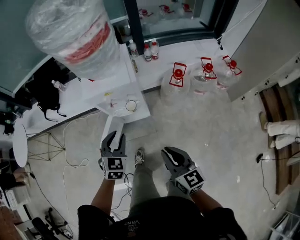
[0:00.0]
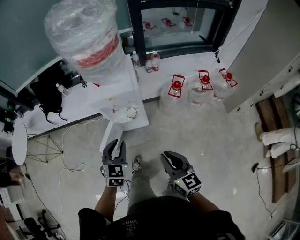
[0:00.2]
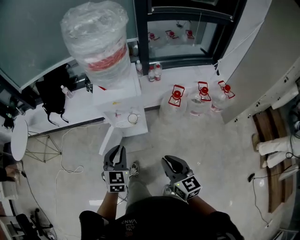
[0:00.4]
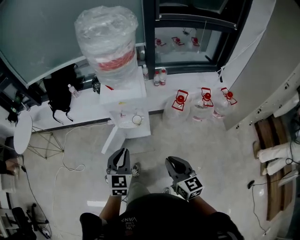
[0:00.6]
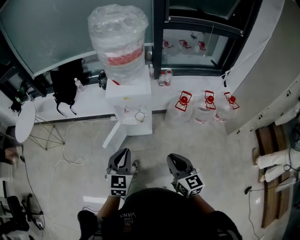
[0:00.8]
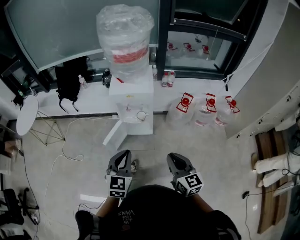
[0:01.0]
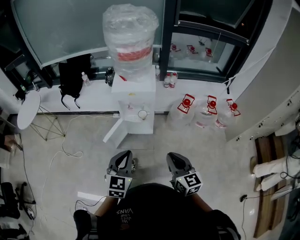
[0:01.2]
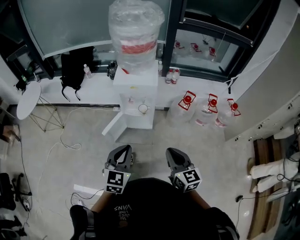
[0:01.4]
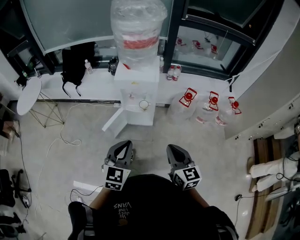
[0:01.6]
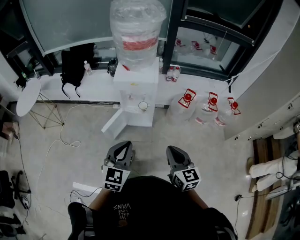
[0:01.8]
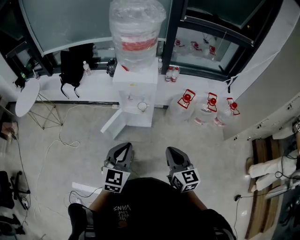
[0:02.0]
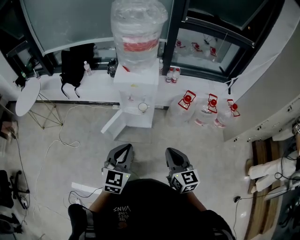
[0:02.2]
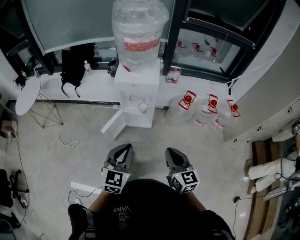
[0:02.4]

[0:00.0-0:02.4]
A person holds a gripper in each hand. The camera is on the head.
0:00.0 to 0:01.2: The right gripper travels backward and upward by roughly 15 cm; the left gripper shifts about 25 cm backward and upward, rotates some 20 degrees, and closes its fingers.
0:01.2 to 0:02.4: The grippers move only a little.

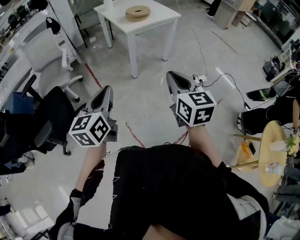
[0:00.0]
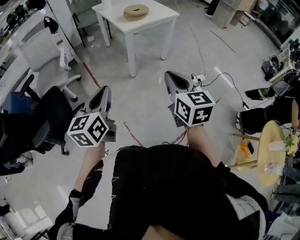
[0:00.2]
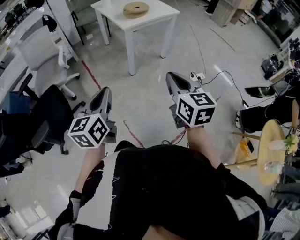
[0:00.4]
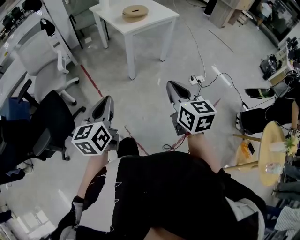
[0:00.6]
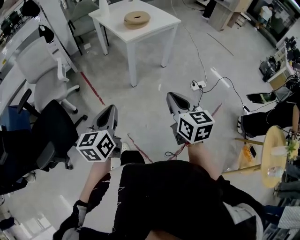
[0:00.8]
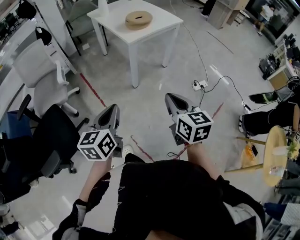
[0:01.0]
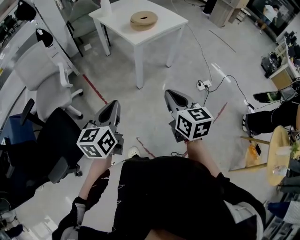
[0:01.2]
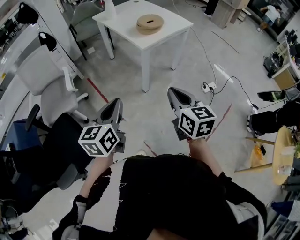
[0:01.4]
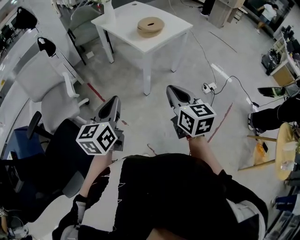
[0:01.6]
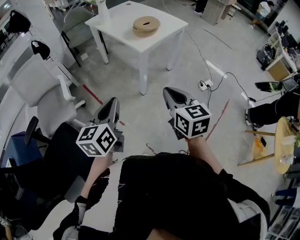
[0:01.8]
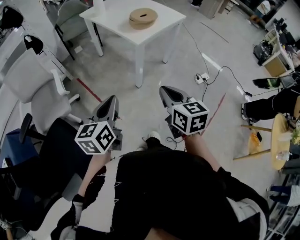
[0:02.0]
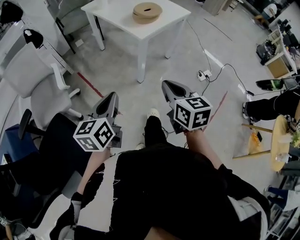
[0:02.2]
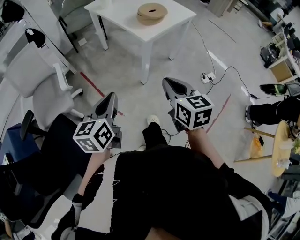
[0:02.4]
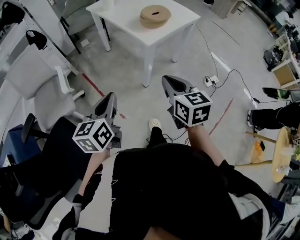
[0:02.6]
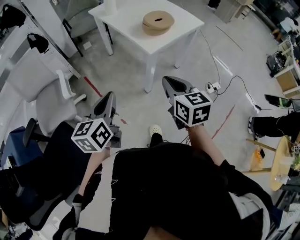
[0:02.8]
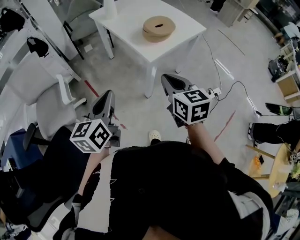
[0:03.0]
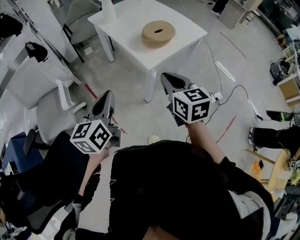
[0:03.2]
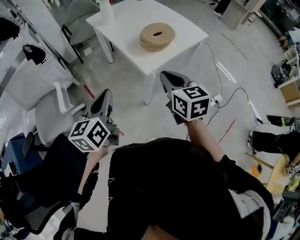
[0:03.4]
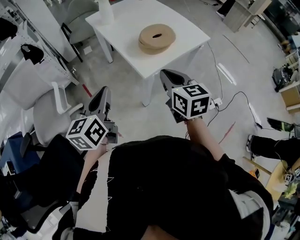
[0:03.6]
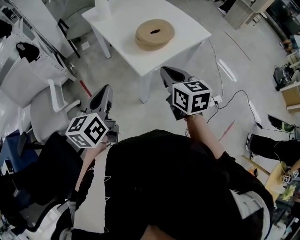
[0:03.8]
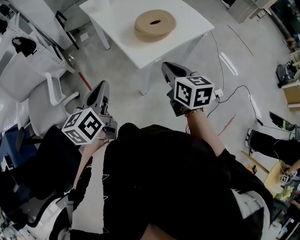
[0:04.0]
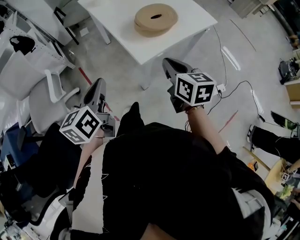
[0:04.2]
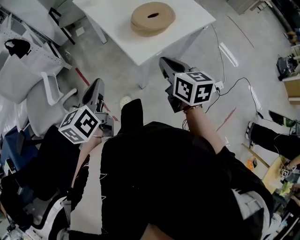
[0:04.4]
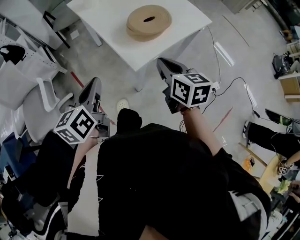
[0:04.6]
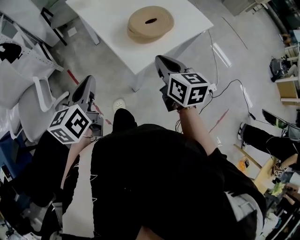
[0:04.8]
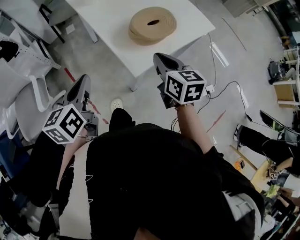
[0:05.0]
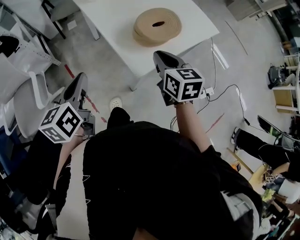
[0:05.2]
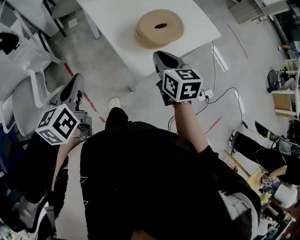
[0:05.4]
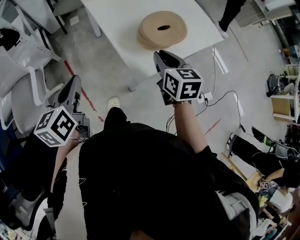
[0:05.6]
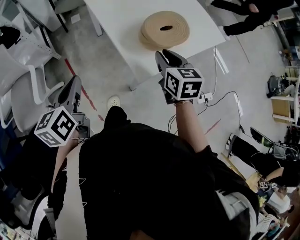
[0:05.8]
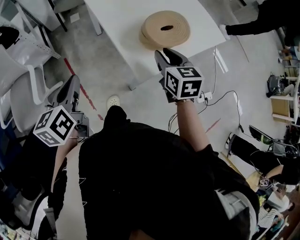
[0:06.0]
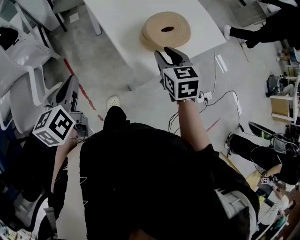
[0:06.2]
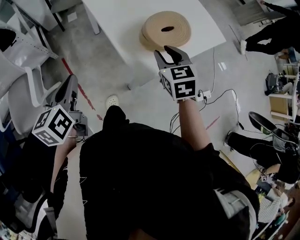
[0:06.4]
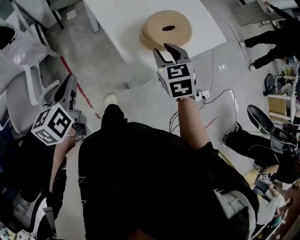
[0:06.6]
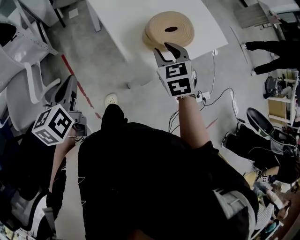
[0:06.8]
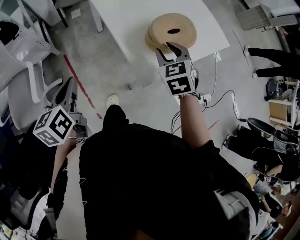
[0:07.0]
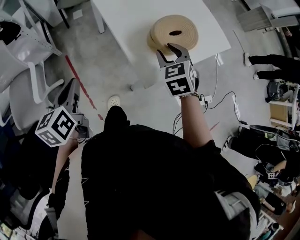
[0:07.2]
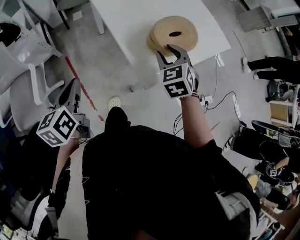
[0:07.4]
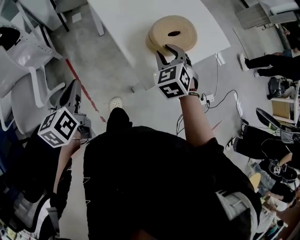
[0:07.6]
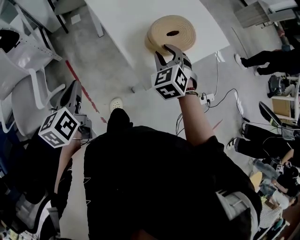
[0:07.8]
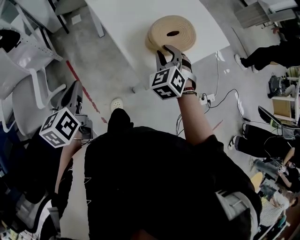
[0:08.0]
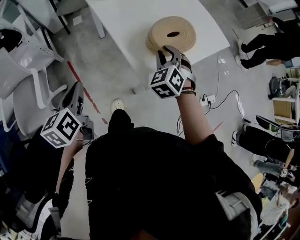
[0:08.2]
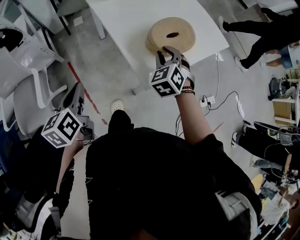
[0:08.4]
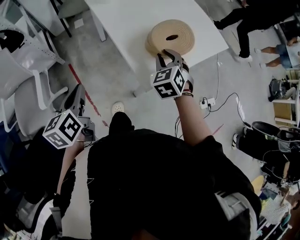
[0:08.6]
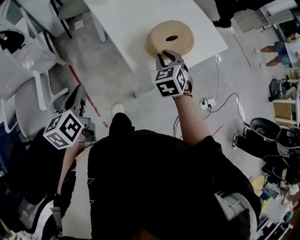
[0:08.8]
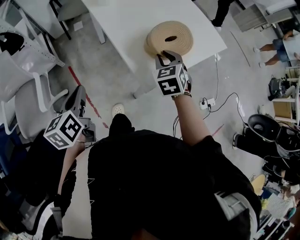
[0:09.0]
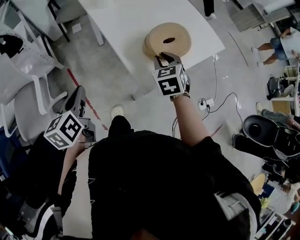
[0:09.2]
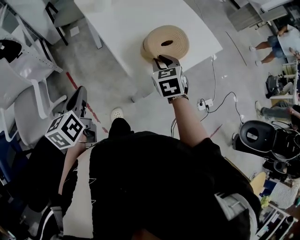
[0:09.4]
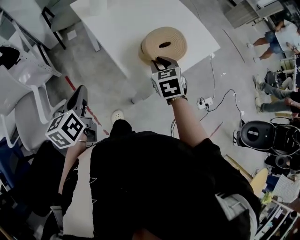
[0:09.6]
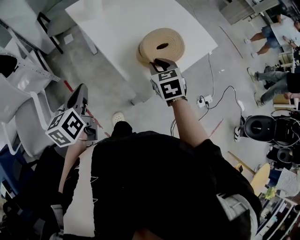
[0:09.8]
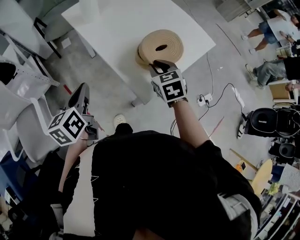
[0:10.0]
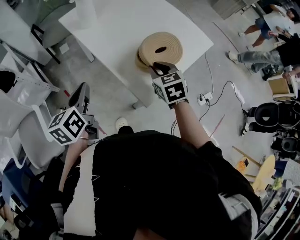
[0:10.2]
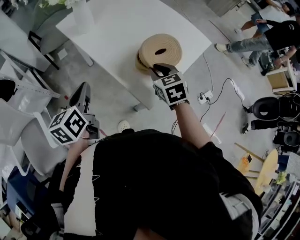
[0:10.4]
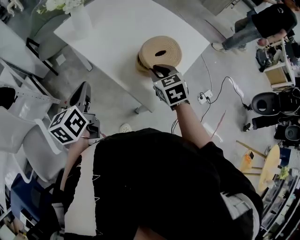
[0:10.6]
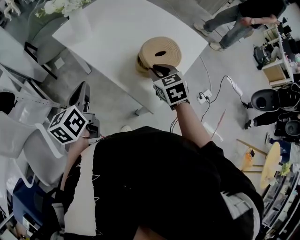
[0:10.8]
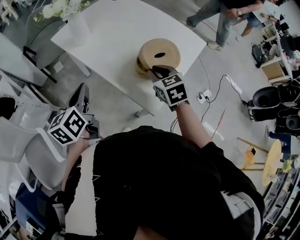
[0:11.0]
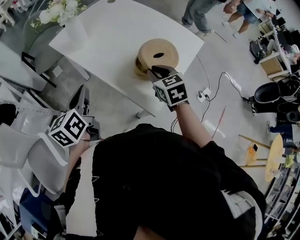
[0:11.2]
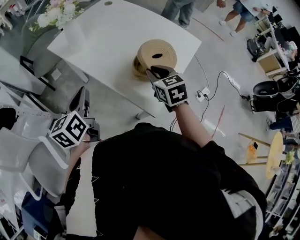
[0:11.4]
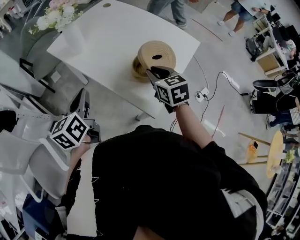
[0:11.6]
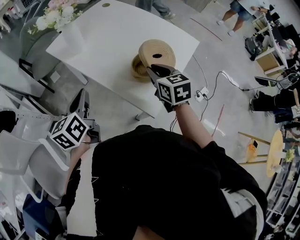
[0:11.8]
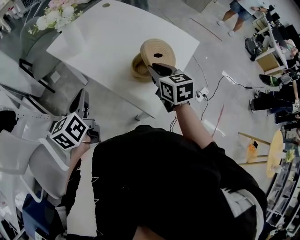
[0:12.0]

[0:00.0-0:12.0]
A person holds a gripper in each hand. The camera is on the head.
0:00.0 to 0:01.6: Both grippers move forward and to the left, about 25 cm.
0:01.6 to 0:03.0: The two grippers go about 20 cm forward.
0:03.0 to 0:04.4: The left gripper shifts about 15 cm forward and downward. Meanwhile the right gripper shifts some 20 cm forward, to the right and downward.
0:04.4 to 0:06.0: The right gripper travels forward by roughly 15 cm, and opens up. Meanwhile the left gripper goes roughly 10 cm forward and to the left.
0:06.0 to 0:07.6: The right gripper ends up some 5 cm from where it was, and rotates approximately 40 degrees.
0:07.6 to 0:09.0: The grippers move only a little.
0:09.0 to 0:10.4: The left gripper moves forward, roughly 15 cm.
0:10.4 to 0:12.0: The left gripper is displaced forward by some 5 cm; the right gripper heads upward, covering approximately 5 cm, and rotates some 20 degrees.

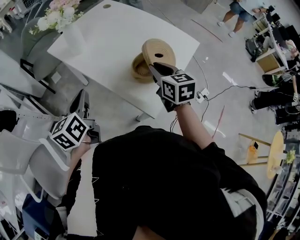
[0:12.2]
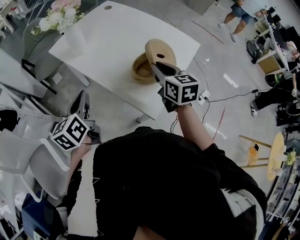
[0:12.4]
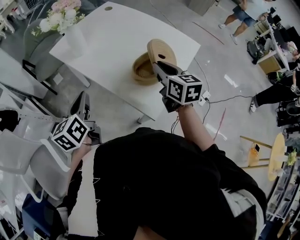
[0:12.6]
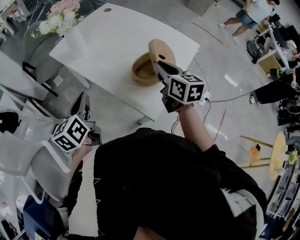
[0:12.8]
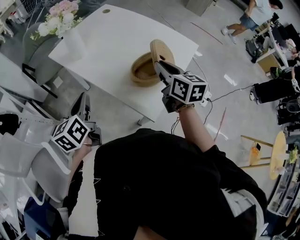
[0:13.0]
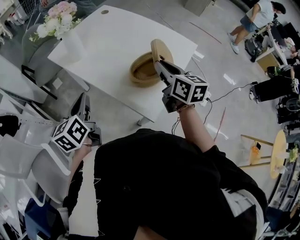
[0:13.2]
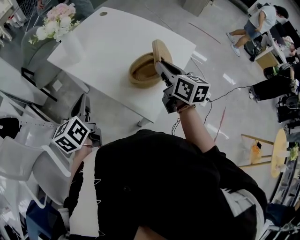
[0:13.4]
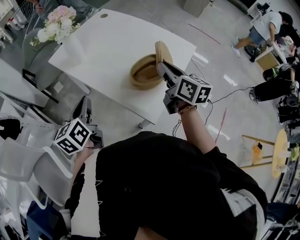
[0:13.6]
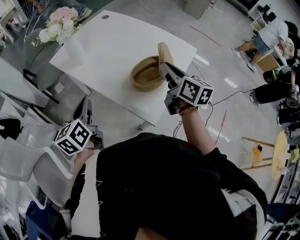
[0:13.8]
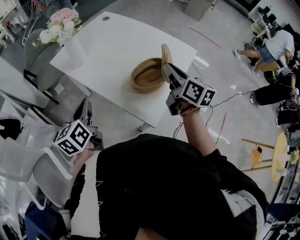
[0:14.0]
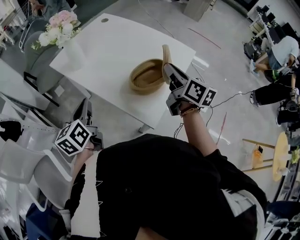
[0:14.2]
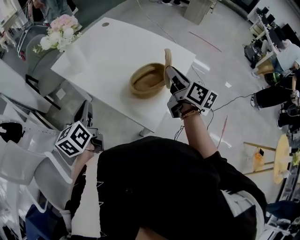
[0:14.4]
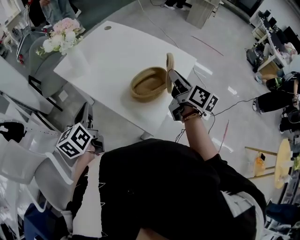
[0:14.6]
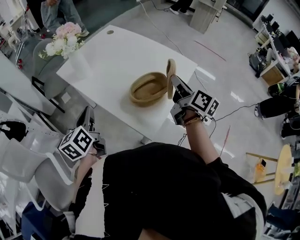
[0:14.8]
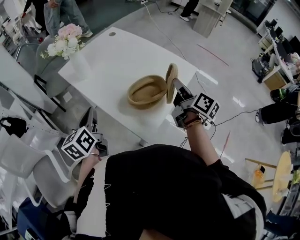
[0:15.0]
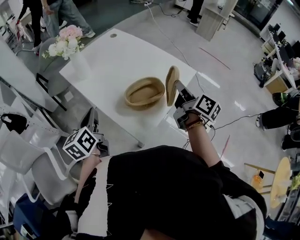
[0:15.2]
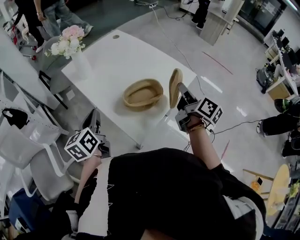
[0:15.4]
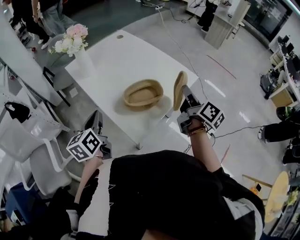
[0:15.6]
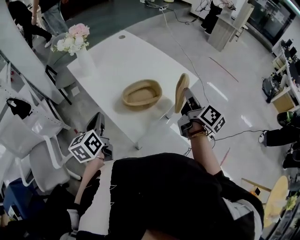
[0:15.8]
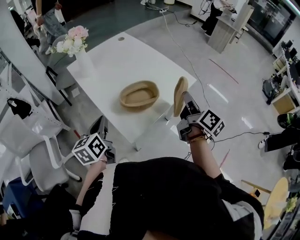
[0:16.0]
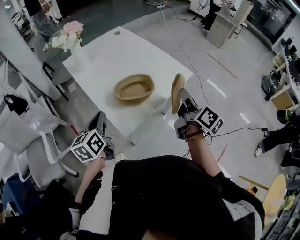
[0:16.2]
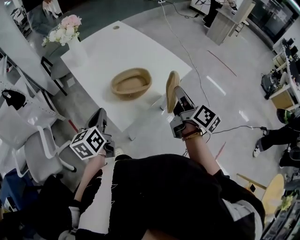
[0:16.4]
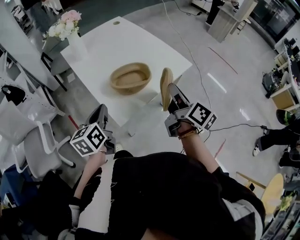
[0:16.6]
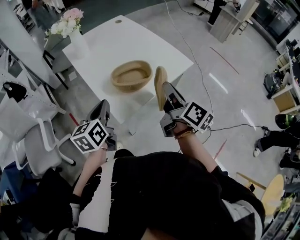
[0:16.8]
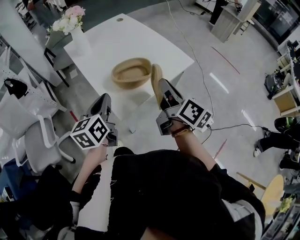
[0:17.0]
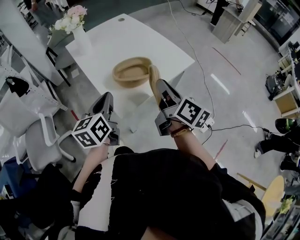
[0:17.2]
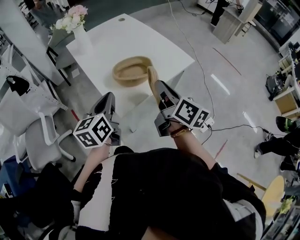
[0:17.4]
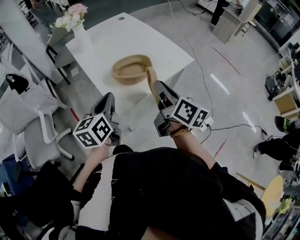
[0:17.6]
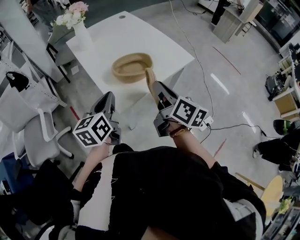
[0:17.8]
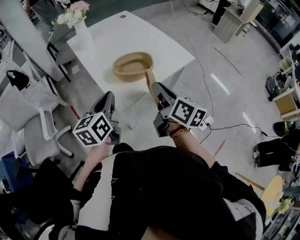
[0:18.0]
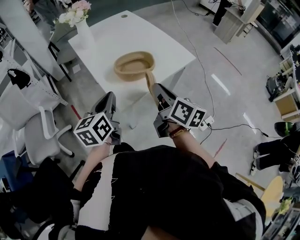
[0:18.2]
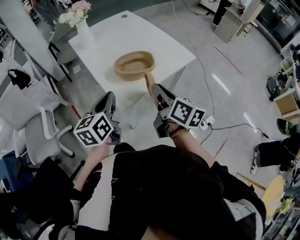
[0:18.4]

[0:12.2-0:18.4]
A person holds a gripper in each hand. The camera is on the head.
0:12.2 to 0:13.8: The right gripper is displaced upward and to the right by roughly 5 cm, and swivels approximately 30 degrees.
0:13.8 to 0:15.4: The left gripper goes roughly 10 cm to the right. The right gripper travels to the right by approximately 15 cm, and turns by about 20 degrees.
0:15.4 to 0:16.8: The left gripper goes some 15 cm to the right and backward; the right gripper moves backward, some 10 cm.
0:16.8 to 0:18.4: The right gripper moves to the left, about 5 cm.

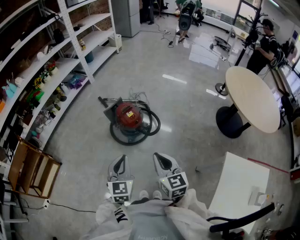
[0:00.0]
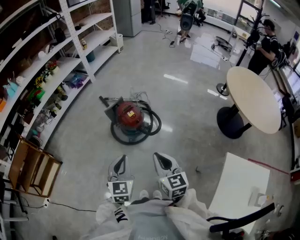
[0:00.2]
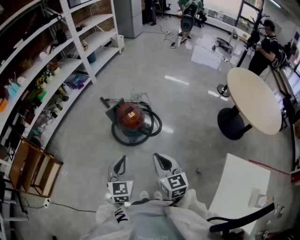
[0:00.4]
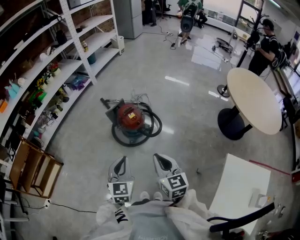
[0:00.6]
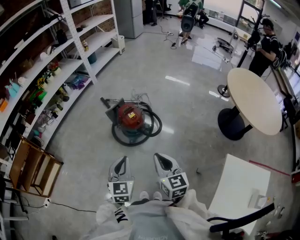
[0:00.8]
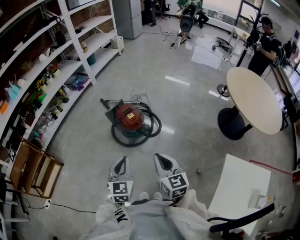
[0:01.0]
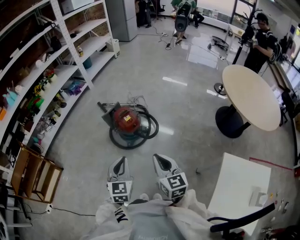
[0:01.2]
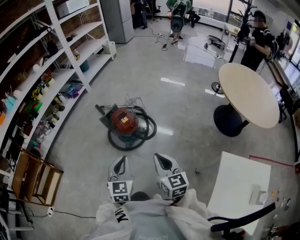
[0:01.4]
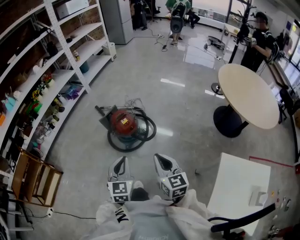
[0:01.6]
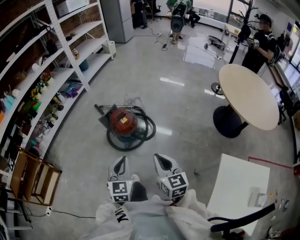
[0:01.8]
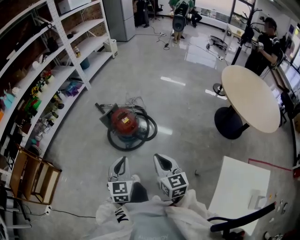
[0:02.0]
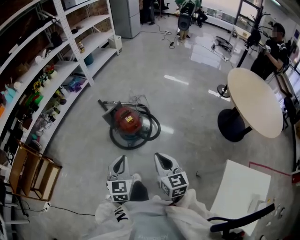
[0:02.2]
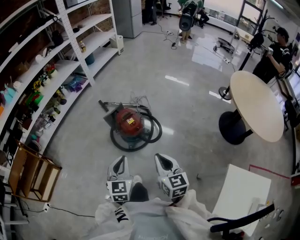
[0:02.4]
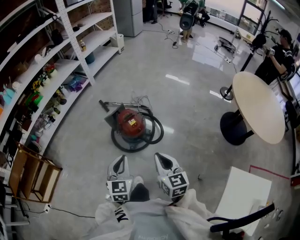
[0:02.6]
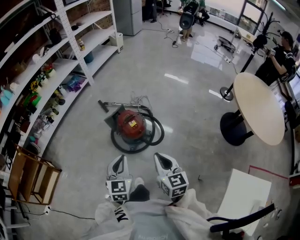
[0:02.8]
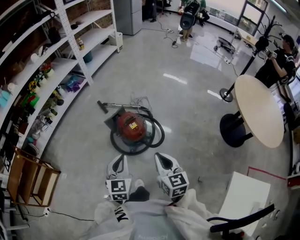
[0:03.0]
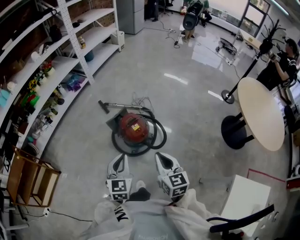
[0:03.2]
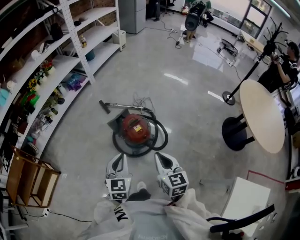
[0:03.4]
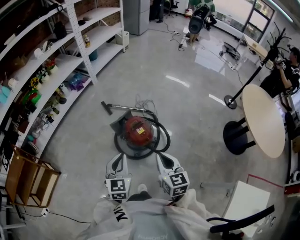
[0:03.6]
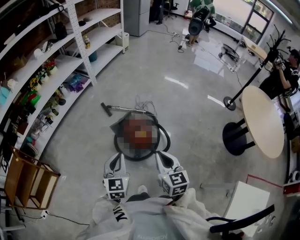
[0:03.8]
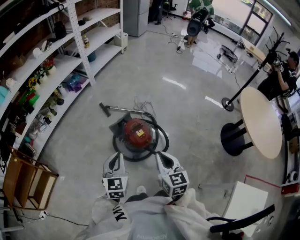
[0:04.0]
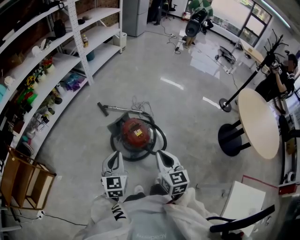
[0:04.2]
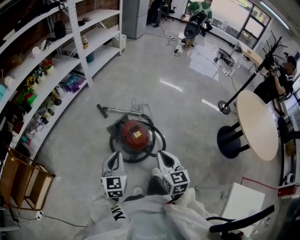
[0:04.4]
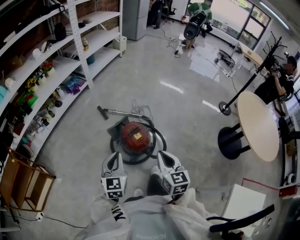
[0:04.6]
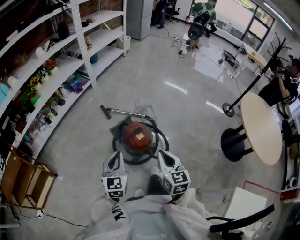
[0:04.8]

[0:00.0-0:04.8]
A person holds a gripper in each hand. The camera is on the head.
0:00.0 to 0:01.6: The grippers both shift to the right by some 5 cm.
0:01.6 to 0:03.2: Both grippers move forward and to the left, about 20 cm.
0:03.2 to 0:04.8: The left gripper goes some 10 cm forward and to the left. The right gripper heads forward, covering roughly 5 cm.
